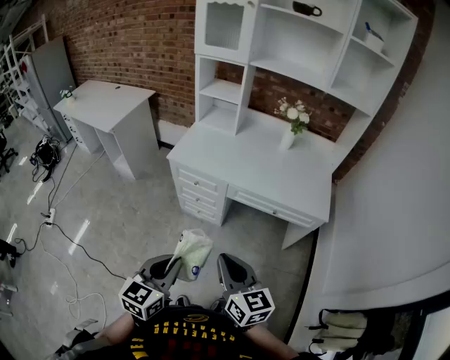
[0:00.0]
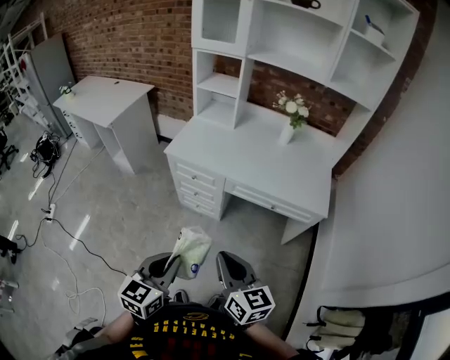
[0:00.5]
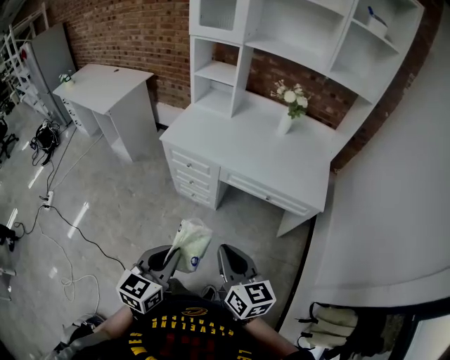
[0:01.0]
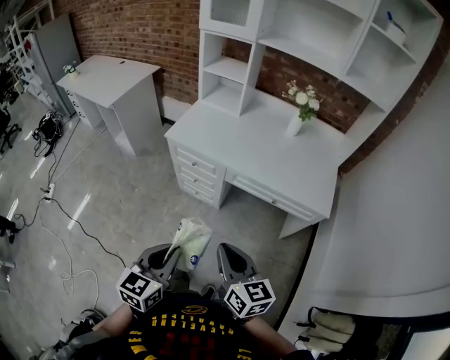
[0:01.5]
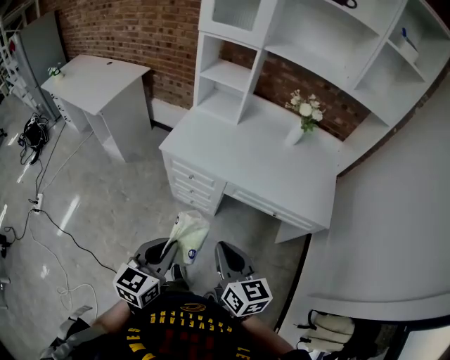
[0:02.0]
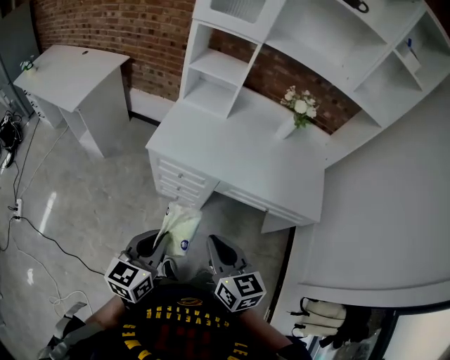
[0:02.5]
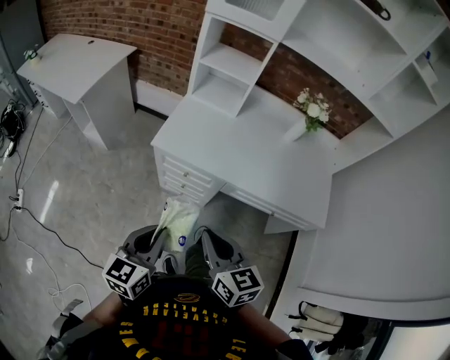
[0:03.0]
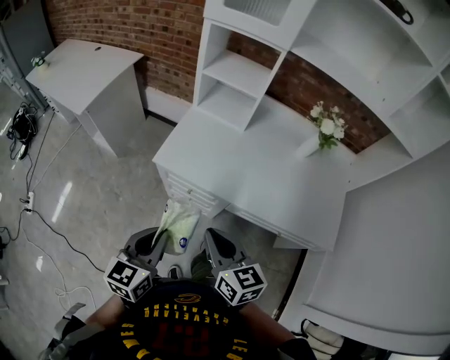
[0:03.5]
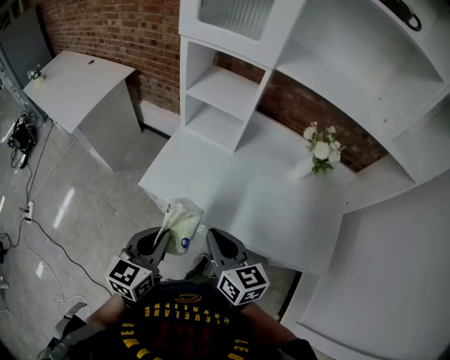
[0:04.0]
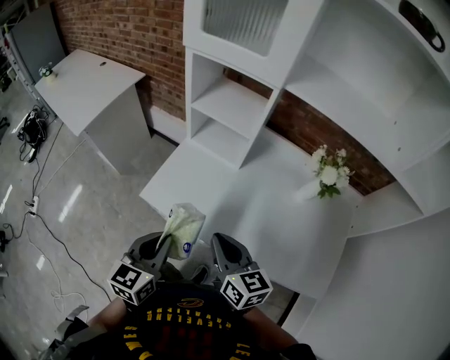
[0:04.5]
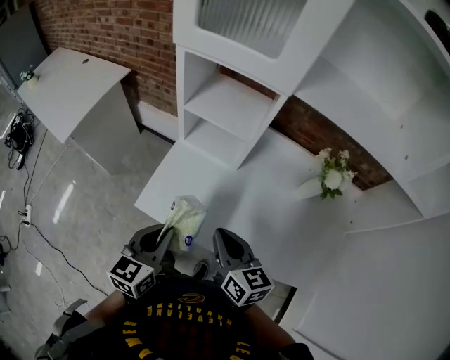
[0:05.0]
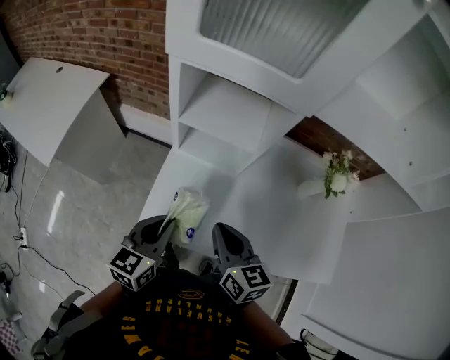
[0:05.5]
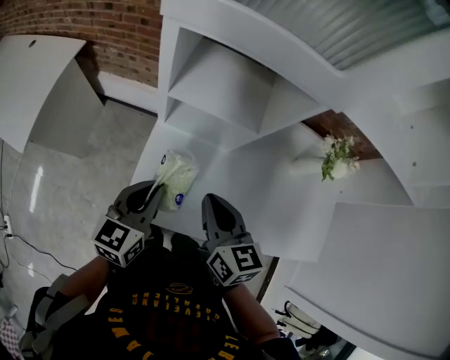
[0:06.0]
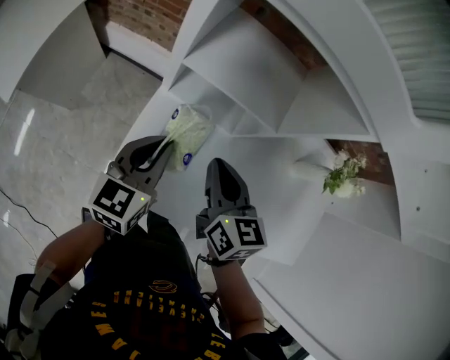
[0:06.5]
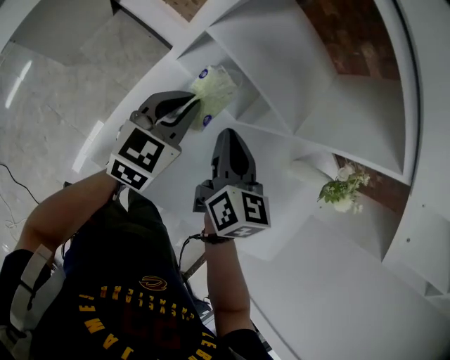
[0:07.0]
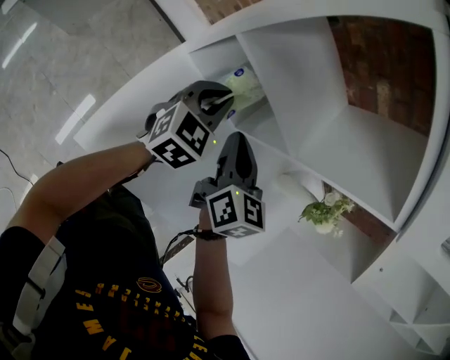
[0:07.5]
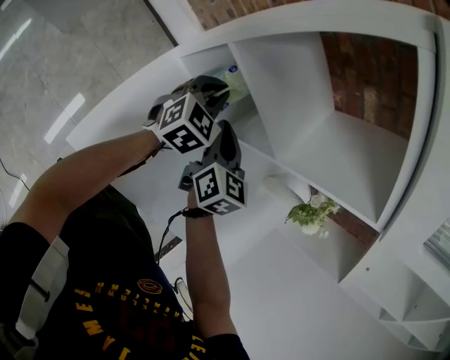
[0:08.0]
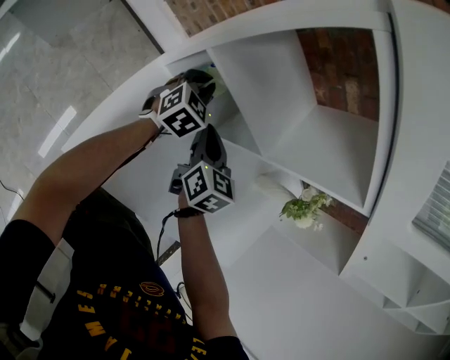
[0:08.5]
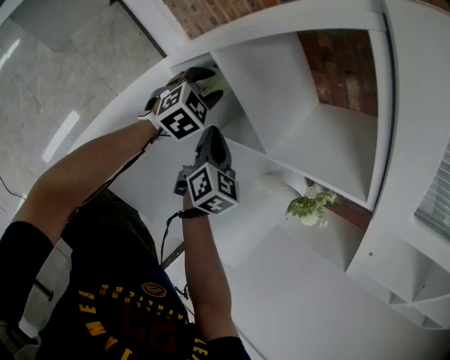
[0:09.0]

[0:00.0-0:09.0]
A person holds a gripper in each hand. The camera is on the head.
0:00.0 to 0:02.0: Both grippers move forward, approximately 10 cm.
0:02.0 to 0:04.5: Both grippers move forward, roughly 35 cm.
0:04.5 to 0:07.0: Both grippers travel together forward, roughly 35 cm. The right gripper swivels about 20 degrees.
0:07.0 to 0:09.0: The left gripper heads forward and downward, covering roughly 15 cm, and opens; the right gripper shifts approximately 5 cm downward.

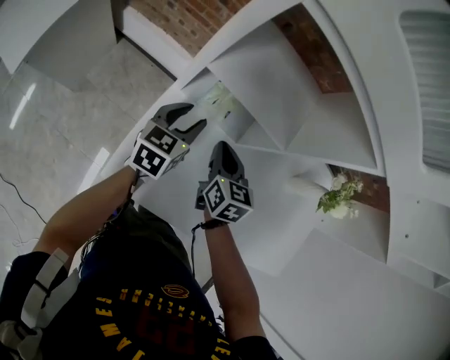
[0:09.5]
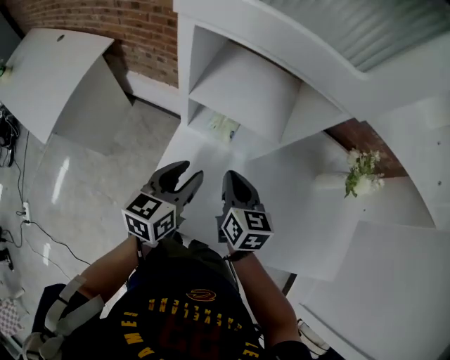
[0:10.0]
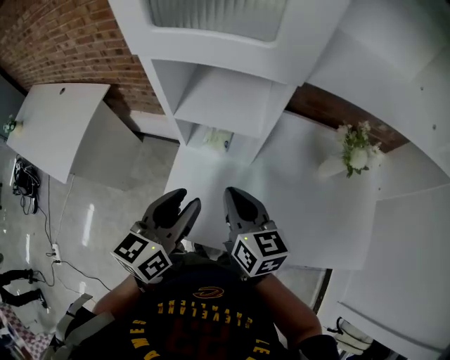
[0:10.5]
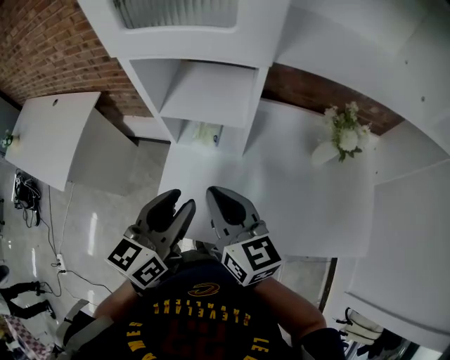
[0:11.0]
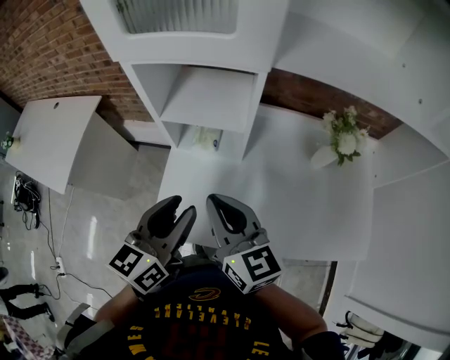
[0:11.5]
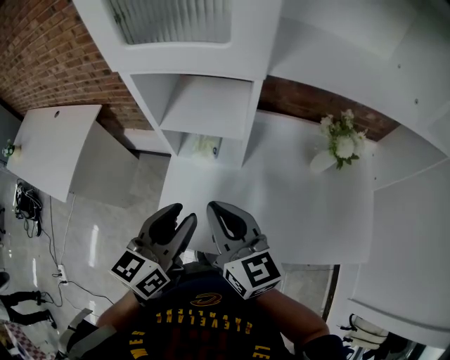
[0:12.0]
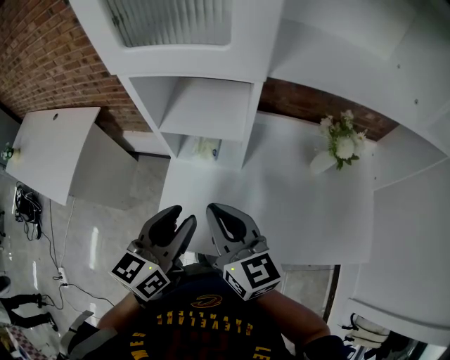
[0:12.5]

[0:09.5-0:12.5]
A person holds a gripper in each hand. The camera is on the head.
0:09.5 to 0:11.0: Both grippers travel together upward and backward, about 25 cm. The right gripper turns by approximately 30 degrees.
0:11.0 to 0:12.5: The grippers move only a little.

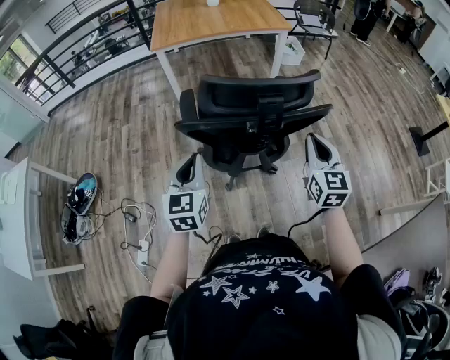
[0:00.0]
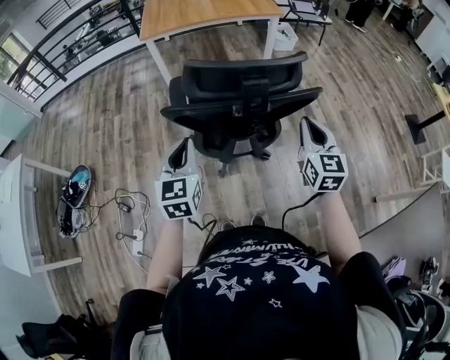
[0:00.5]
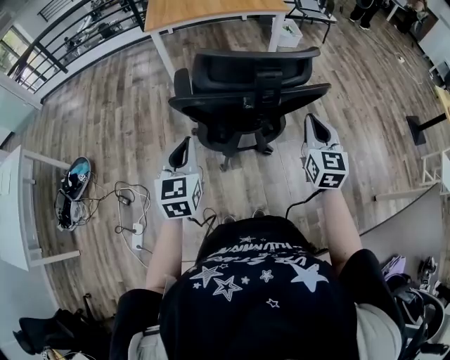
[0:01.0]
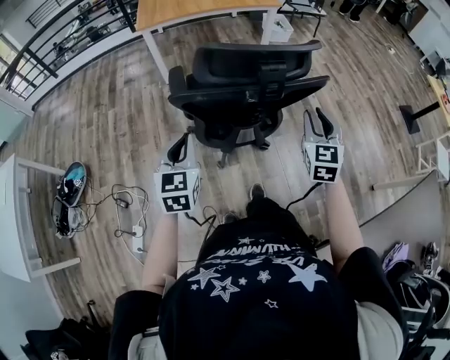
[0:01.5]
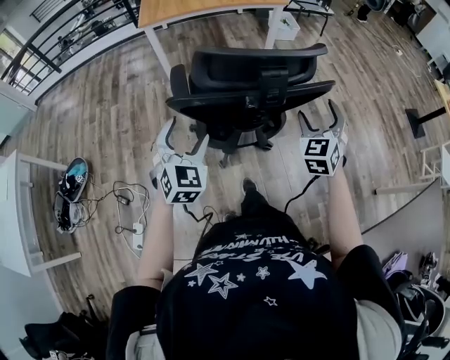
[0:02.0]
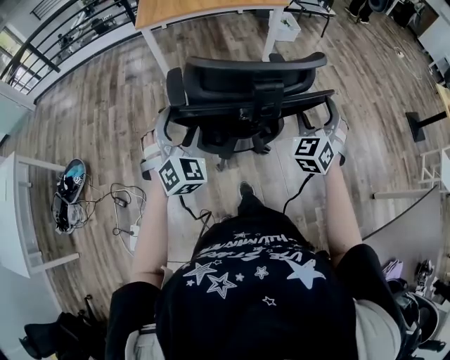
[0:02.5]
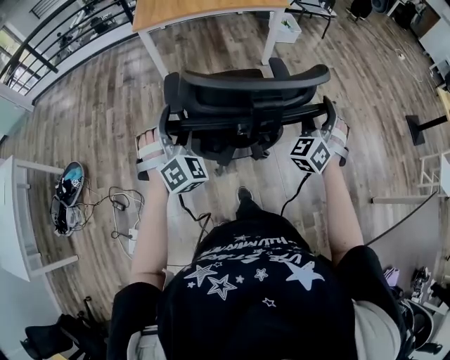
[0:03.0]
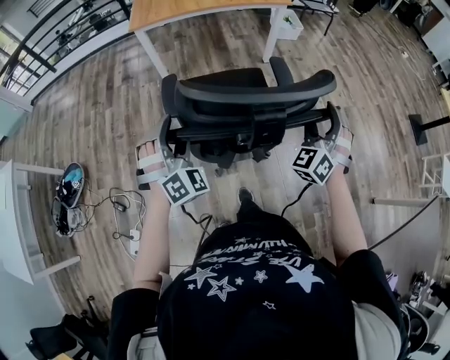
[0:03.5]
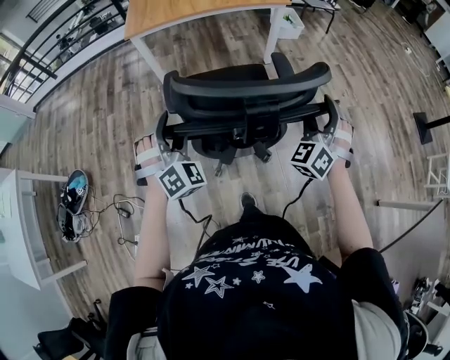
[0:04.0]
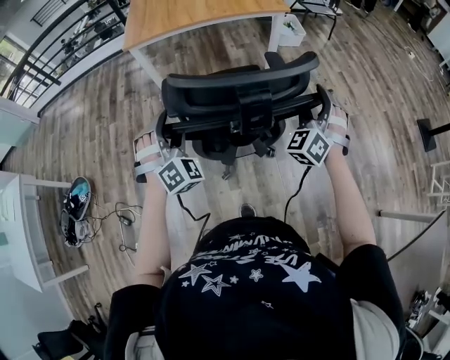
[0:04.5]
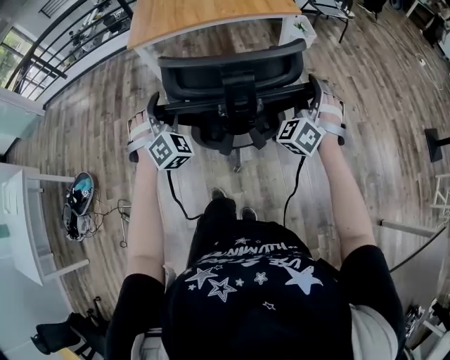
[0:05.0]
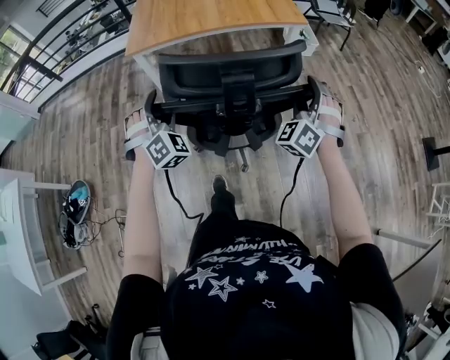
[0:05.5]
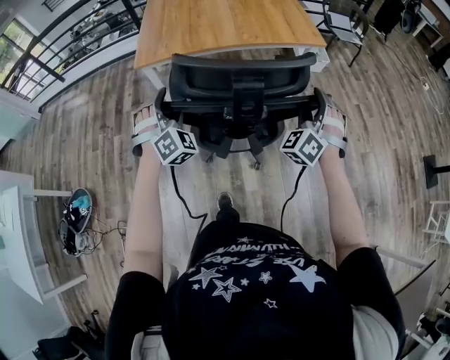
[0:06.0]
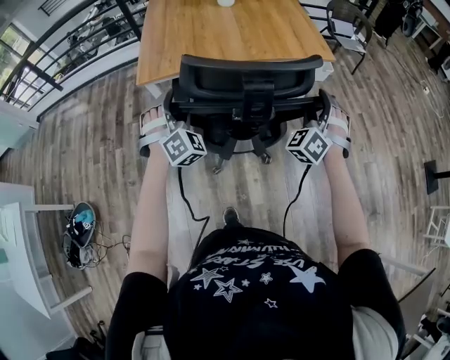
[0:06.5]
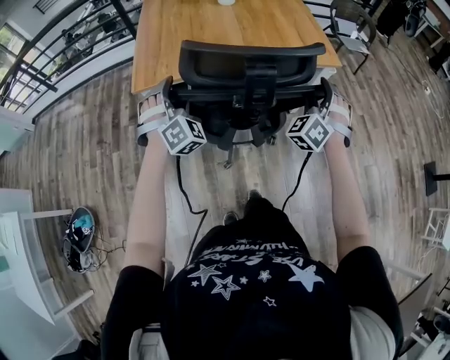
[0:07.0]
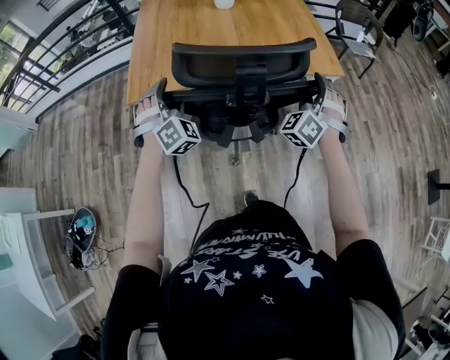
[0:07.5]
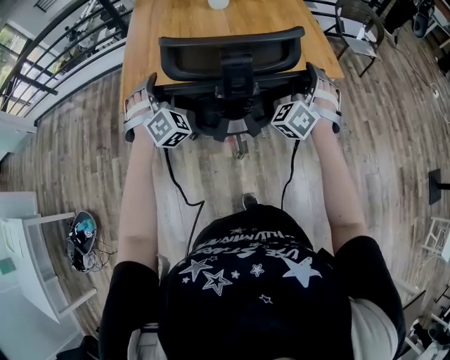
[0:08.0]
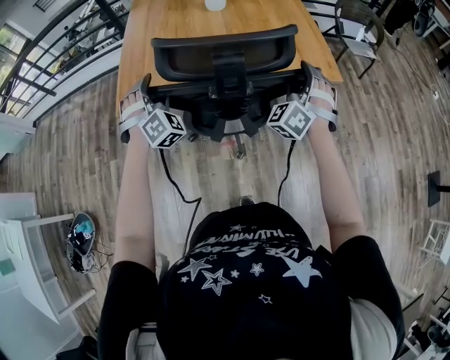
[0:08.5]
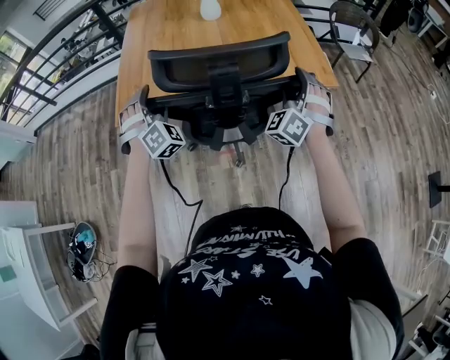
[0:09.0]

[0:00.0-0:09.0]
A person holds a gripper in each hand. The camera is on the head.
0:00.0 to 0:02.0: The left gripper moves some 5 cm, rotates about 30 degrees, and opens. The right gripper ends up about 5 cm from where it was, swivels roughly 40 degrees, and opens.
0:02.0 to 0:04.5: Both grippers move forward, approximately 20 cm. The left gripper changes its angle by about 40 degrees. The right gripper rotates some 20 degrees.
0:04.5 to 0:07.0: The pair of grippers is taken forward, roughly 50 cm.
0:07.0 to 0:09.0: The grippers both shift forward by about 15 cm.

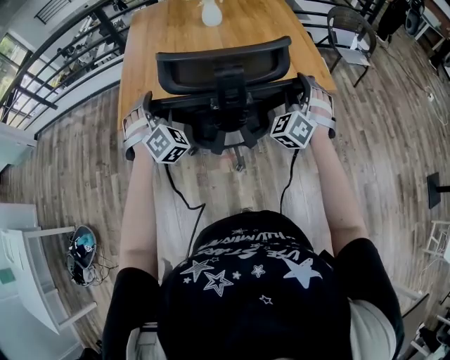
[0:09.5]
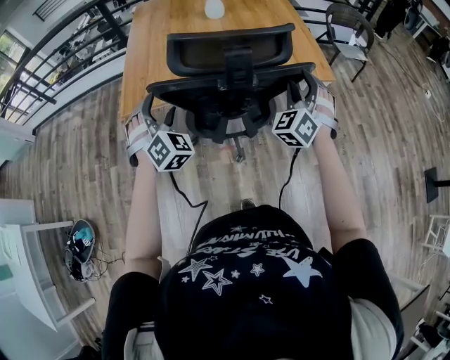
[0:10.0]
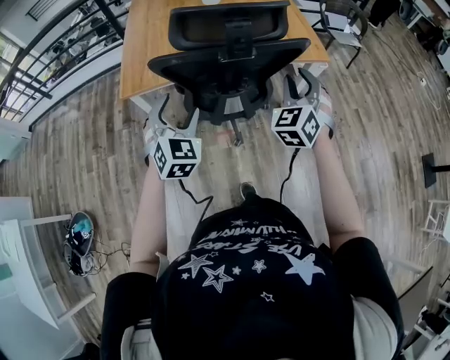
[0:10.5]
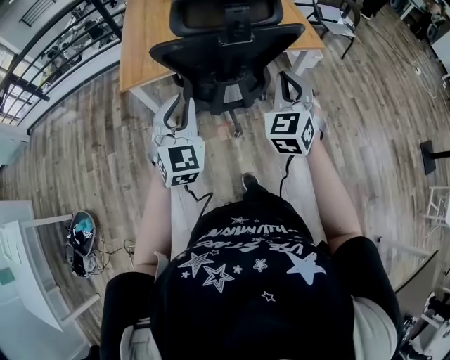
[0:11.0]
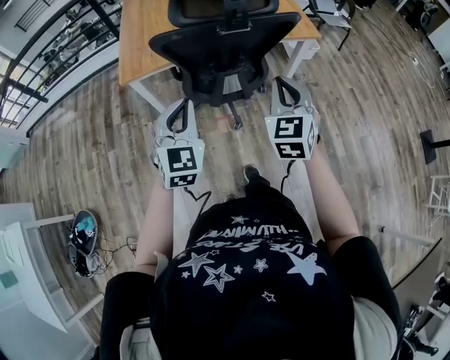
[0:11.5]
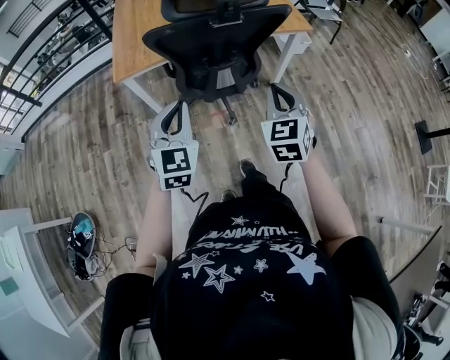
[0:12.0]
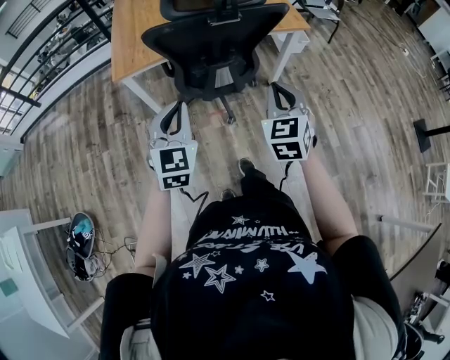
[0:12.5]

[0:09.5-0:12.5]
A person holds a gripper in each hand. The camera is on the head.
0:09.5 to 0:11.0: The two grippers go roughly 25 cm backward. The left gripper changes its angle by some 50 degrees, and closes up, while the right gripper changes its angle by approximately 30 degrees, and closes its fingers.
0:11.0 to 0:12.5: Both grippers travel together backward, roughly 10 cm.

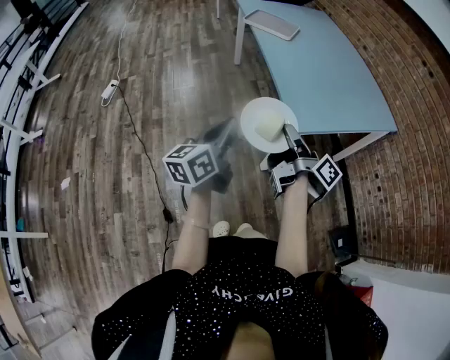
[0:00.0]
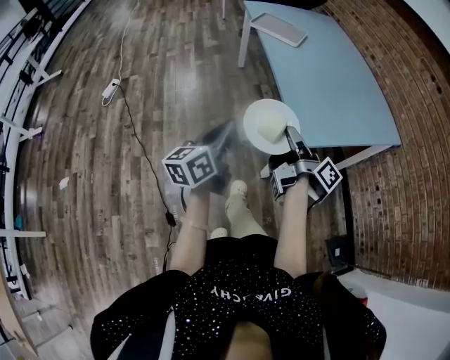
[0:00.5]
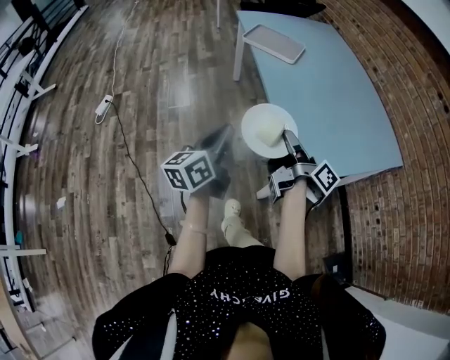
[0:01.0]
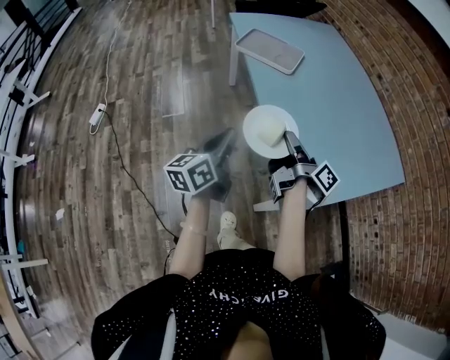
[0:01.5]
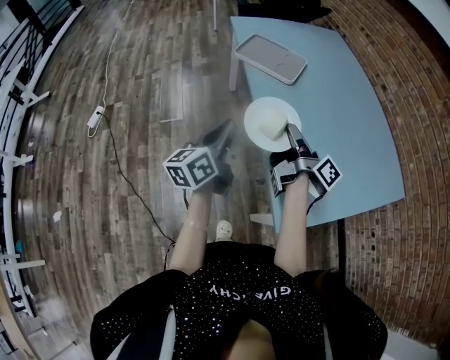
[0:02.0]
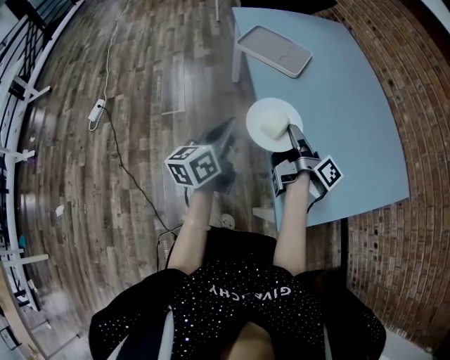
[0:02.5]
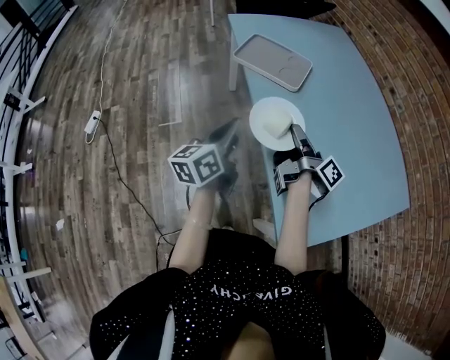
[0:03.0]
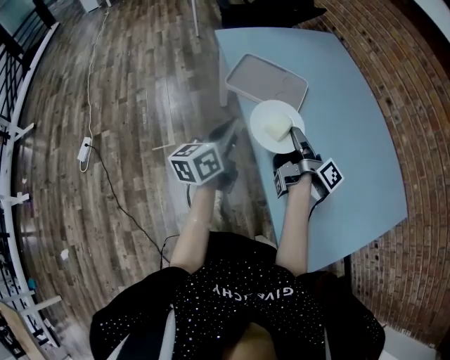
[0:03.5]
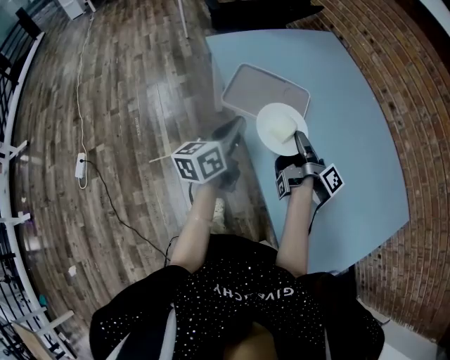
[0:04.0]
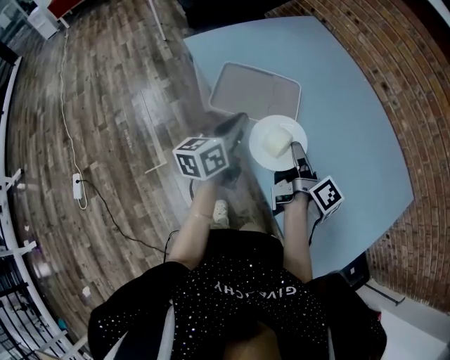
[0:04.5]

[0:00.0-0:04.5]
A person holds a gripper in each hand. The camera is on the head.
0:00.0 to 0:02.0: The left gripper ends up about 40 cm from where it was.
0:02.0 to 0:04.5: The left gripper ends up some 40 cm from where it was, and rotates roughly 20 degrees.
